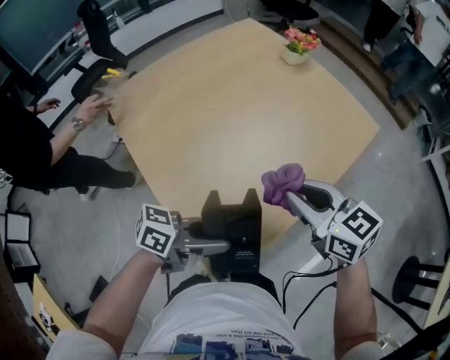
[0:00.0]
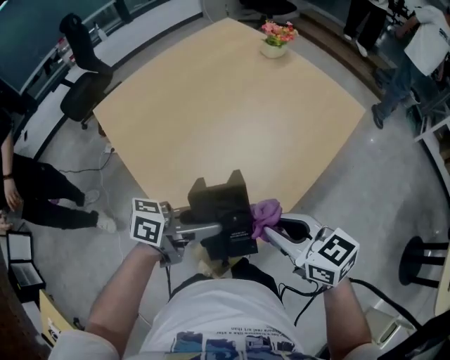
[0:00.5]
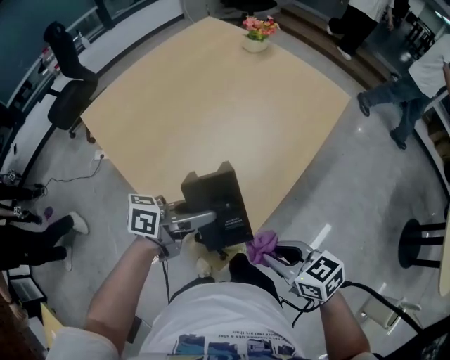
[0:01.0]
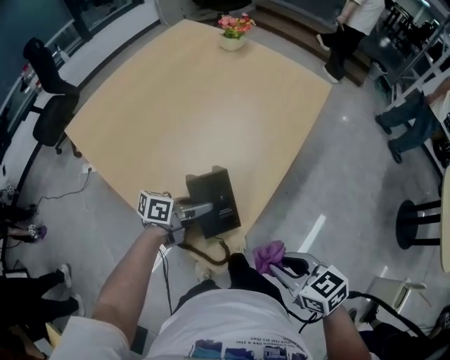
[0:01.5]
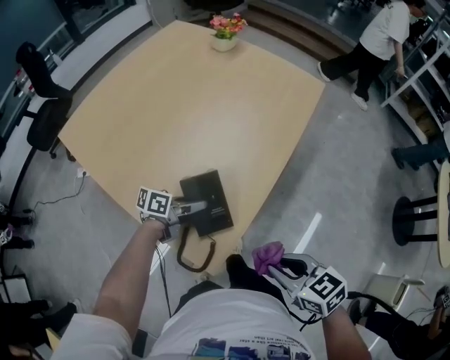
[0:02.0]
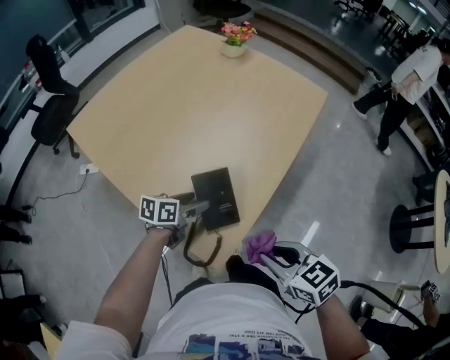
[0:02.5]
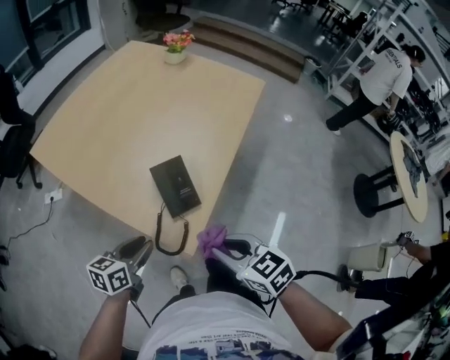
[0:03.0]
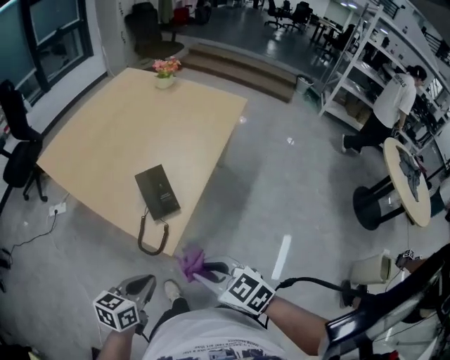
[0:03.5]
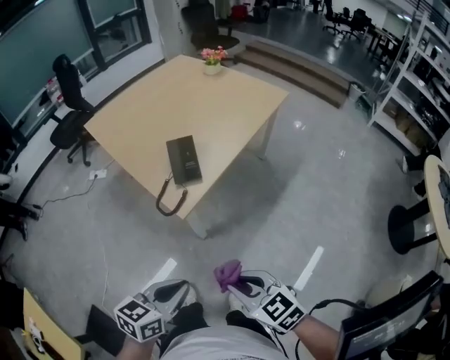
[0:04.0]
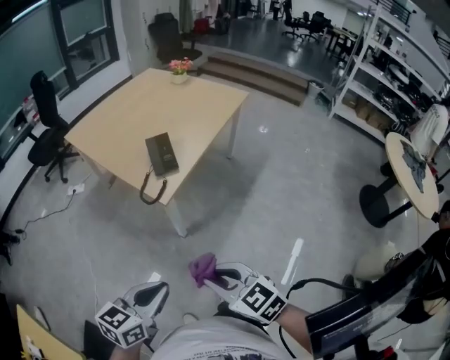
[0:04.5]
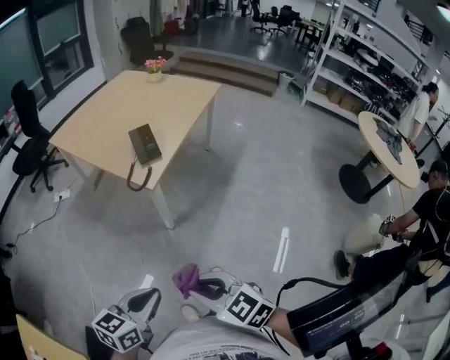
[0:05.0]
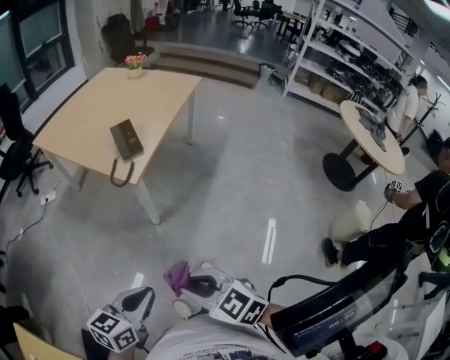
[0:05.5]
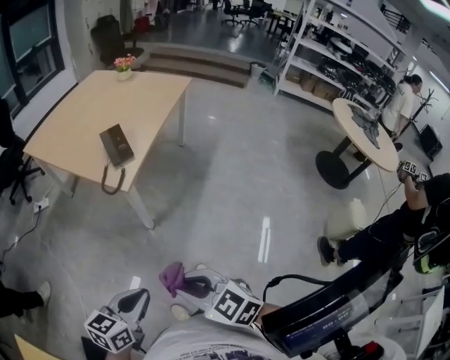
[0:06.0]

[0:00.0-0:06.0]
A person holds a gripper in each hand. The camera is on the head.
0:00.0 to 0:02.0: The right gripper ends up some 25 cm from where it was, and changes its angle by some 30 degrees, while the left gripper is displaced downward by some 15 cm.
0:02.0 to 0:04.0: The left gripper shifts by about 40 cm, changes its angle by roughly 40 degrees, and closes up, while the right gripper changes place by some 25 cm, and swivels about 20 degrees.
0:04.0 to 0:06.0: The grippers both shift backward and to the left by some 15 cm.

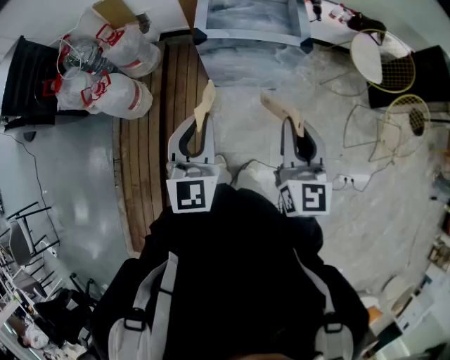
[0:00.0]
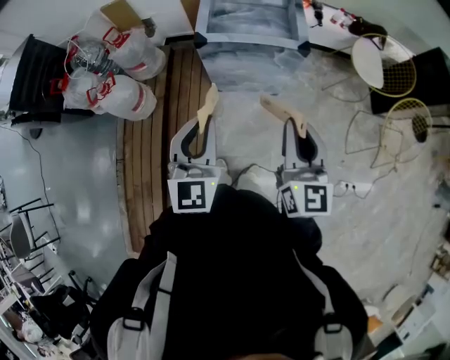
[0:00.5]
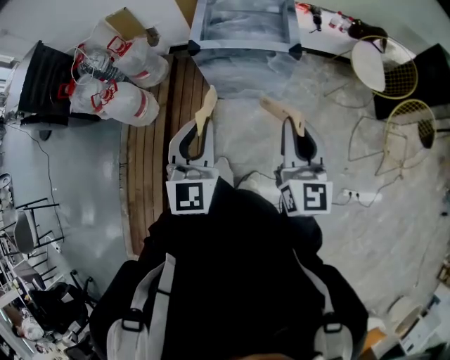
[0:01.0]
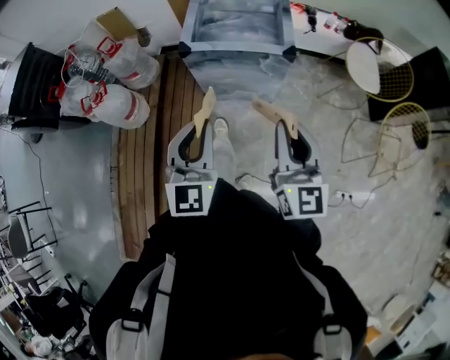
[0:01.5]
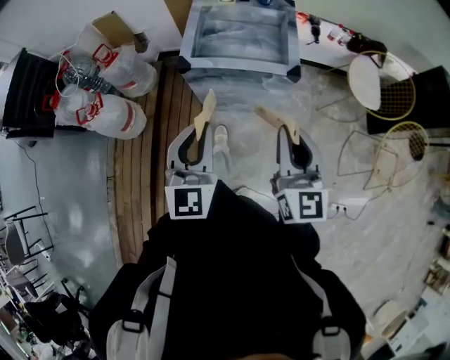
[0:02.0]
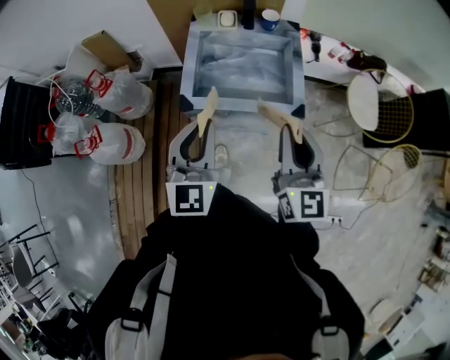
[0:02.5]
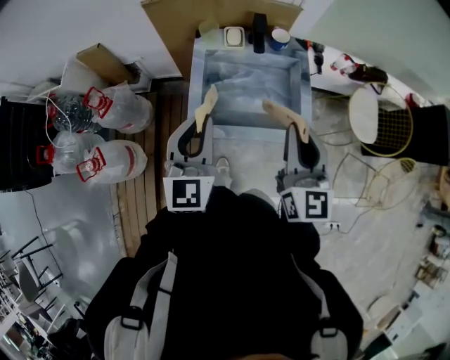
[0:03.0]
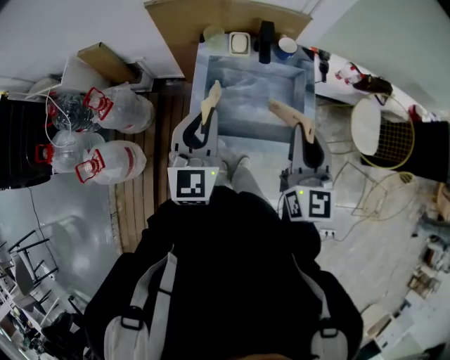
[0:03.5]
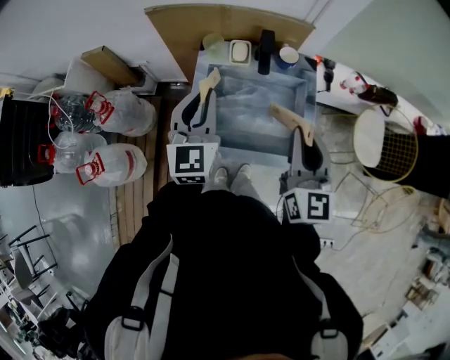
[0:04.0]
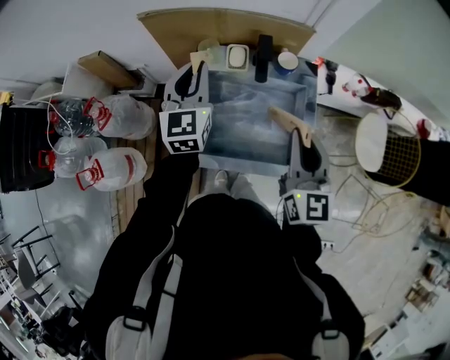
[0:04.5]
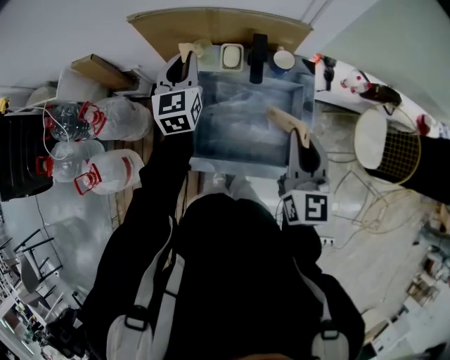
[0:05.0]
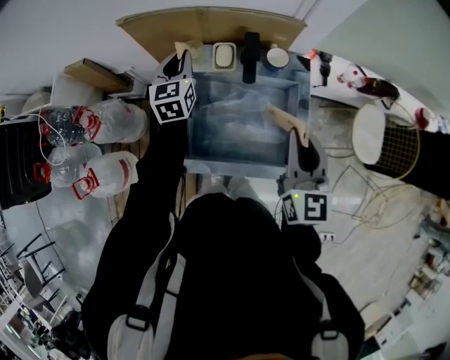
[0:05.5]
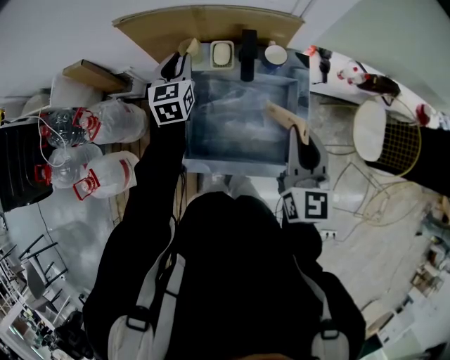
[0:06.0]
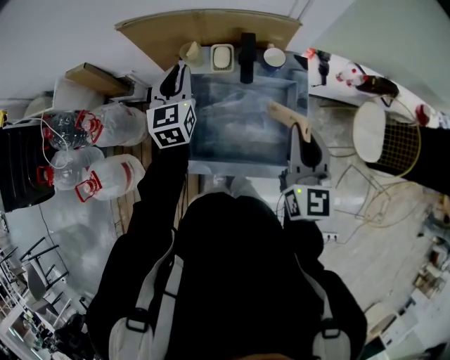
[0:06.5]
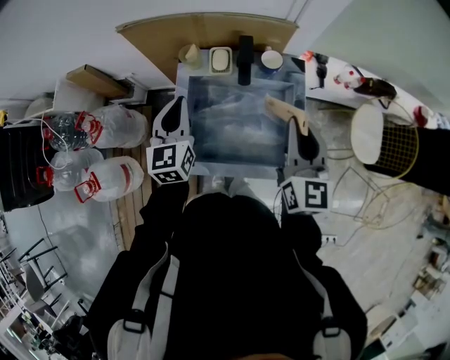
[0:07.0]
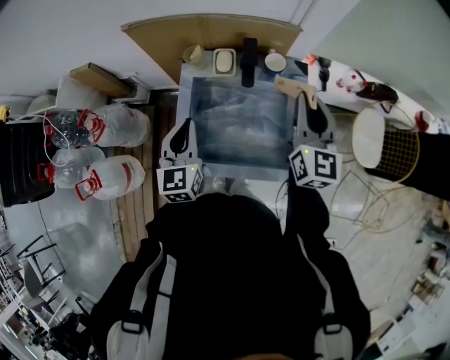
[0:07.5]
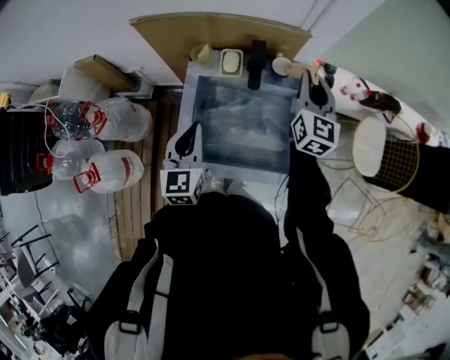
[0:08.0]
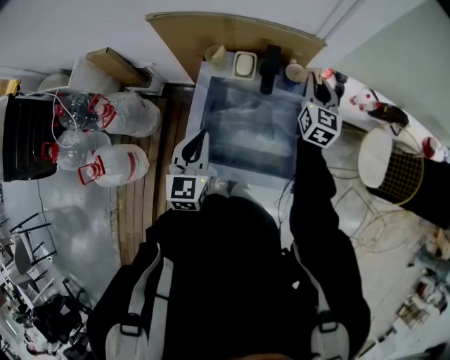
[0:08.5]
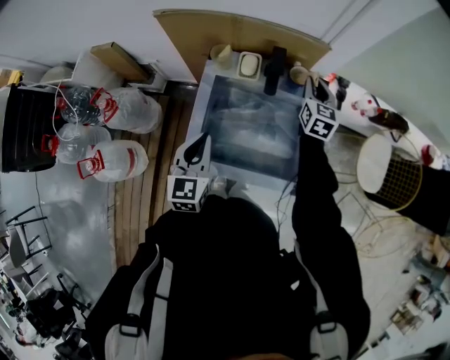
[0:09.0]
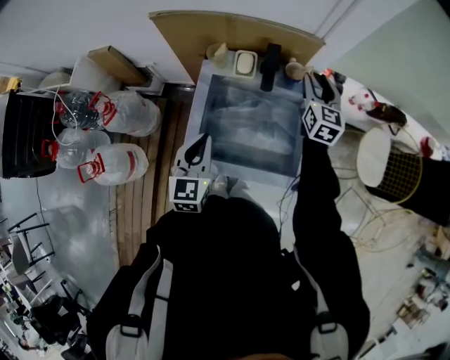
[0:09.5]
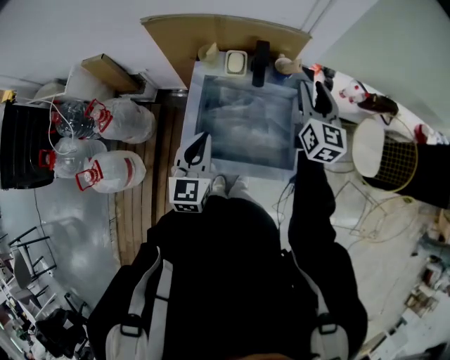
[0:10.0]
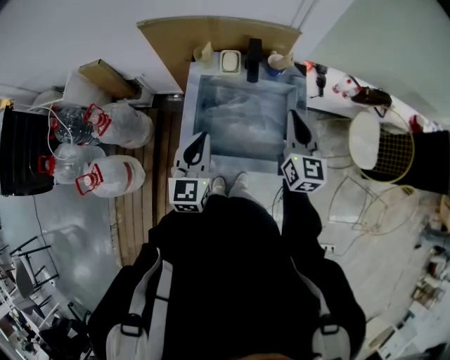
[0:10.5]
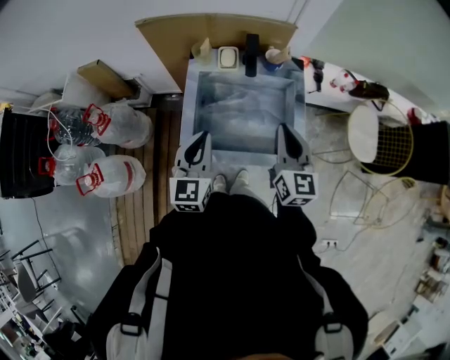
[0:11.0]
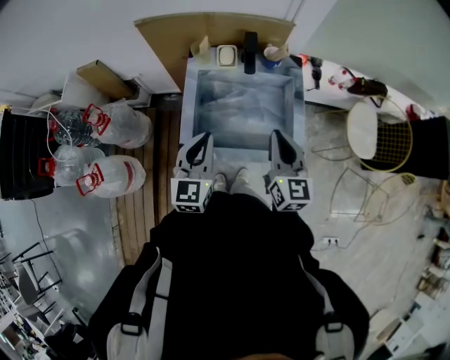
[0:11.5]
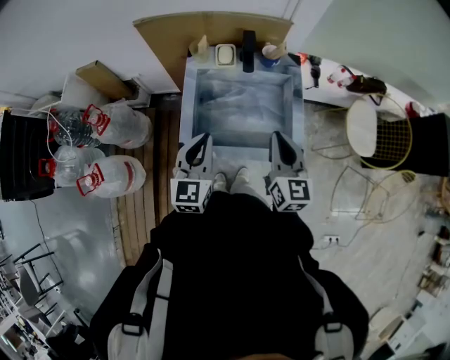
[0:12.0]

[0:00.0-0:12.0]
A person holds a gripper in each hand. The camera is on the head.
0:00.0 to 0:02.0: The left gripper moves to the right and forward, about 15 cm, while the right gripper travels forward and to the right by some 15 cm.
0:02.0 to 0:04.0: Both grippers are carried forward, approximately 40 cm.
0:04.0 to 0:06.0: The left gripper shifts some 25 cm forward and downward, while the right gripper travels forward by roughly 5 cm.
0:06.0 to 0:08.0: The left gripper heads backward, covering some 20 cm. Meanwhile the right gripper goes approximately 15 cm forward.
0:08.0 to 0:10.0: Both grippers move backward, about 5 cm. The right gripper travels downward and back again, some 10 cm each way, and opens.
0:10.0 to 0:12.0: The right gripper shifts approximately 25 cm backward, and closes up, while the left gripper moves backward, about 5 cm.

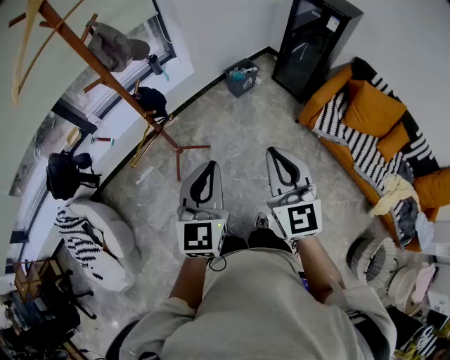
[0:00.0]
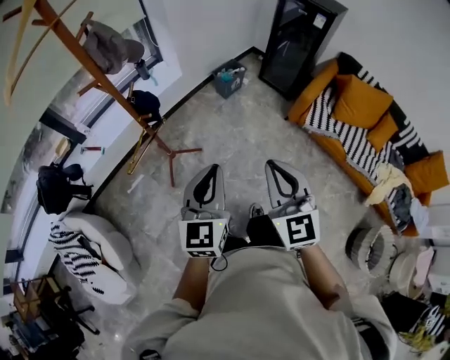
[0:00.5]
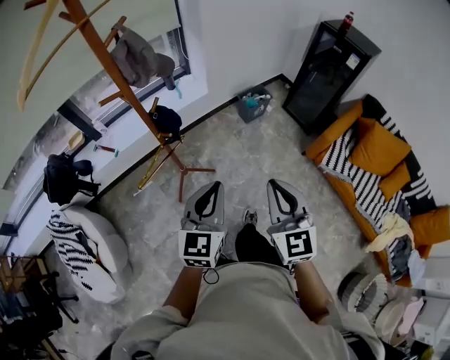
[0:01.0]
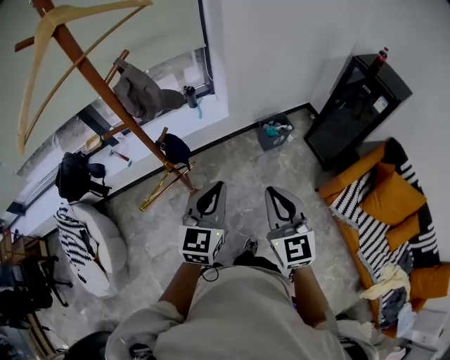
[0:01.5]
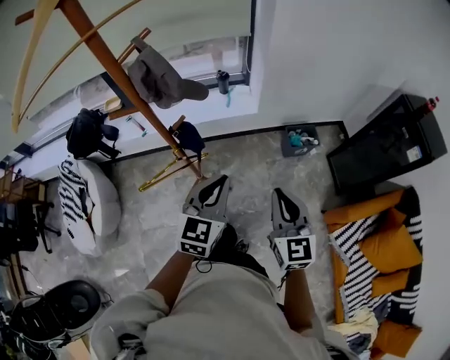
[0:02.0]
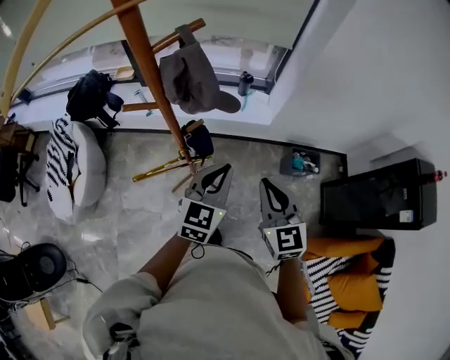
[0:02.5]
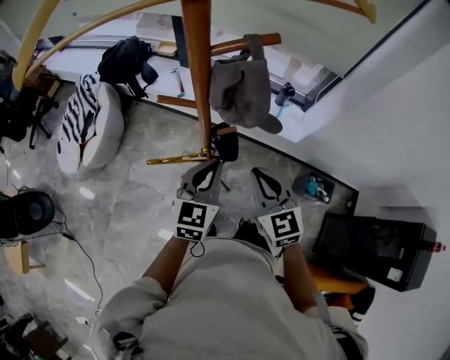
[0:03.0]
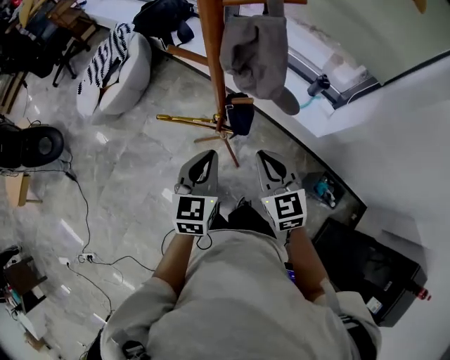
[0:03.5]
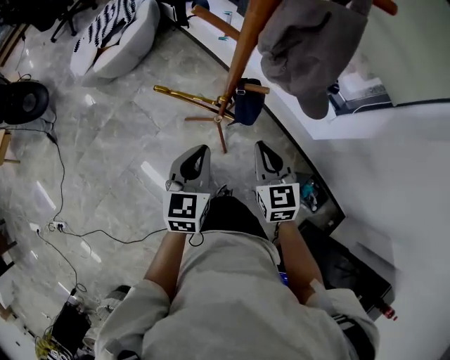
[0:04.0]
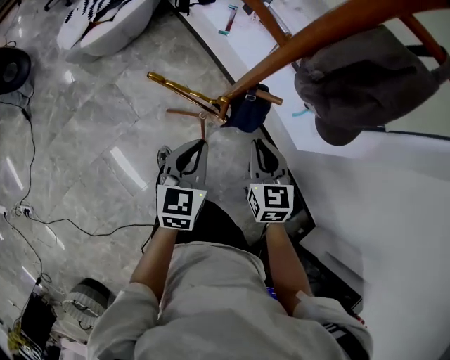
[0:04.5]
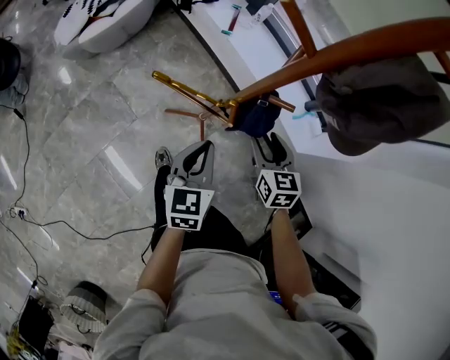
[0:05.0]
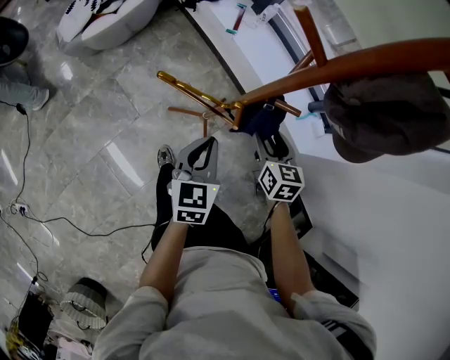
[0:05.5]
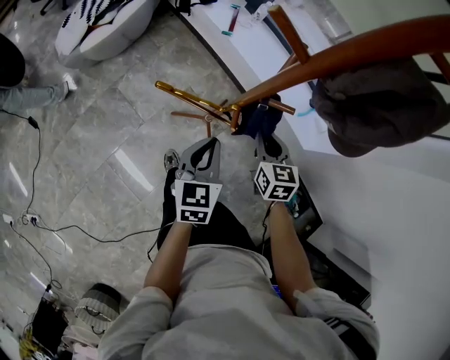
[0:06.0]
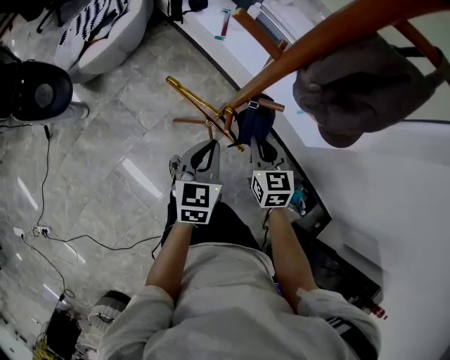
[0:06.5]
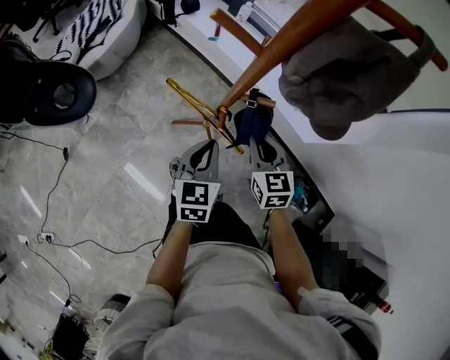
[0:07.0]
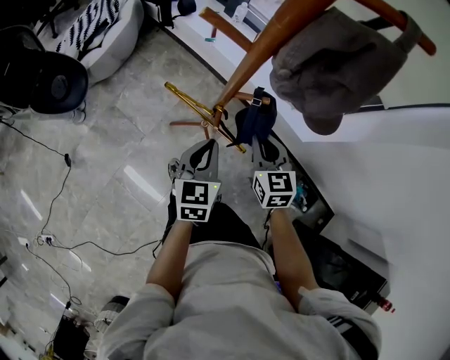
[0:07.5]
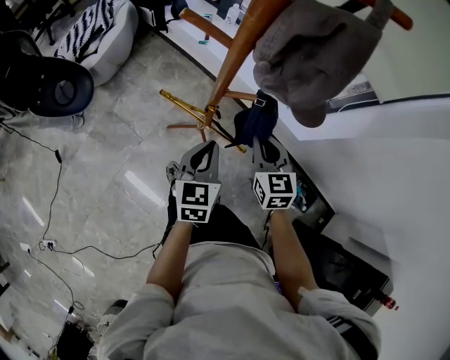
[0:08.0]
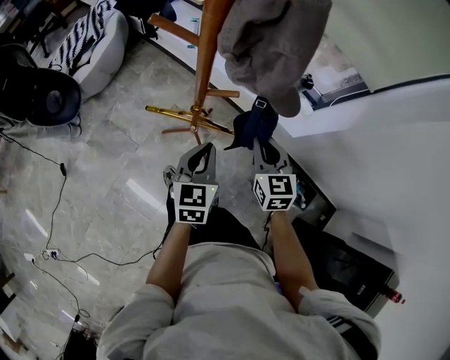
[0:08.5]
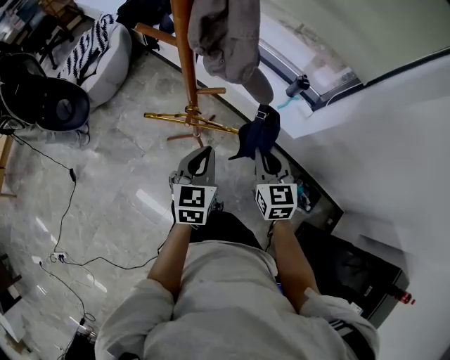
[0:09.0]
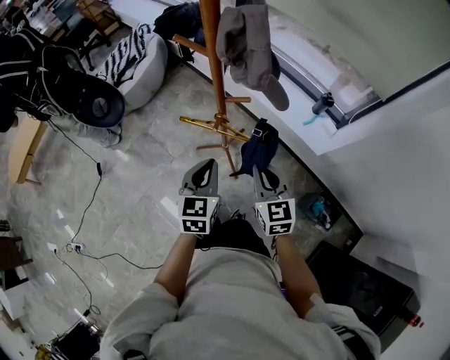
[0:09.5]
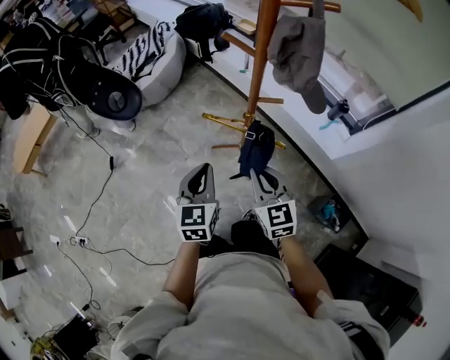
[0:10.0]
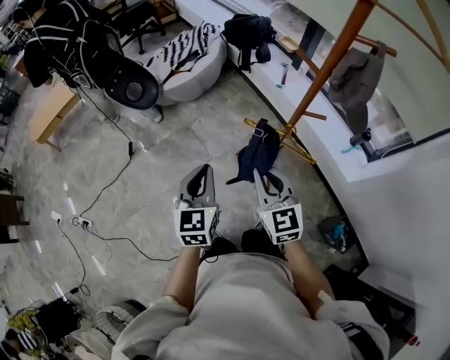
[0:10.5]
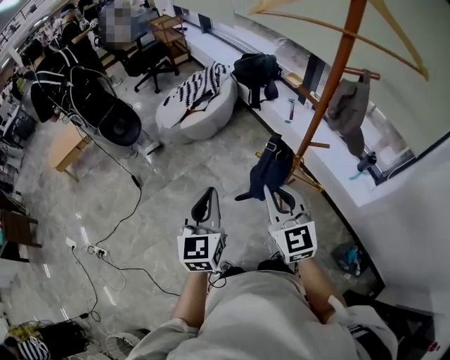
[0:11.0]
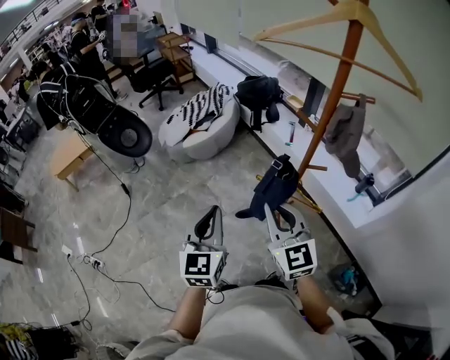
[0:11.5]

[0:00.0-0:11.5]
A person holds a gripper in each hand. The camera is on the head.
0:00.0 to 0:02.0: The two grippers go some 30 cm forward. The left gripper swivels about 20 degrees. Meanwhile the right gripper changes its angle by roughly 30 degrees.
0:02.0 to 0:04.0: The left gripper changes place by about 20 cm, and changes its angle by roughly 70 degrees. The right gripper shifts by some 30 cm, and changes its angle by some 60 degrees.
0:04.0 to 0:06.0: Both grippers travel together downward and forward, some 10 cm. The right gripper opens and closes again.
0:06.0 to 0:07.5: The right gripper is displaced upward by approximately 5 cm.
0:07.5 to 0:09.5: Both grippers move backward and upward, about 15 cm.
0:09.5 to 0:11.5: Both grippers travel together to the left and upward, about 35 cm. The left gripper swivels roughly 20 degrees; the right gripper changes its angle by some 30 degrees.
